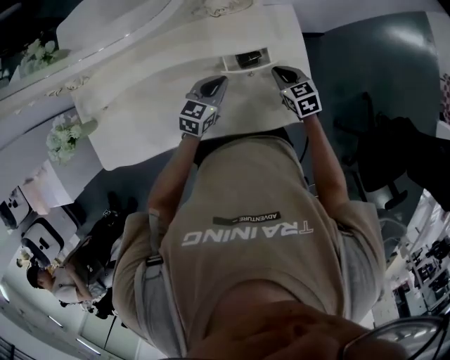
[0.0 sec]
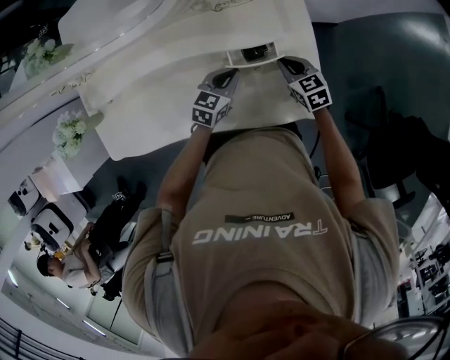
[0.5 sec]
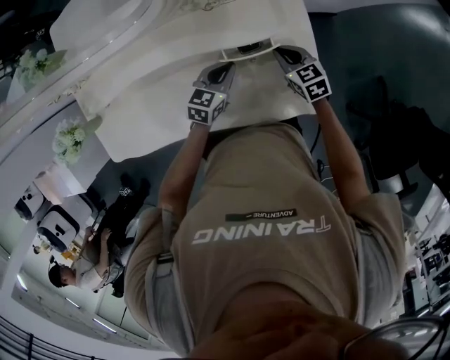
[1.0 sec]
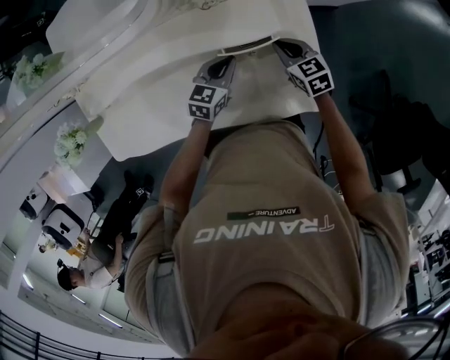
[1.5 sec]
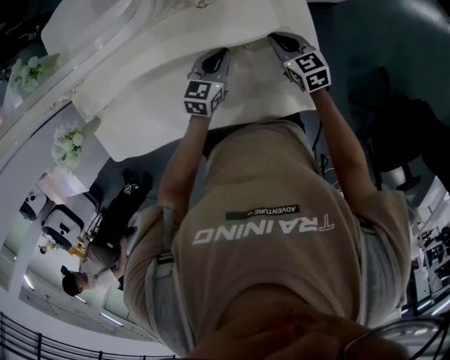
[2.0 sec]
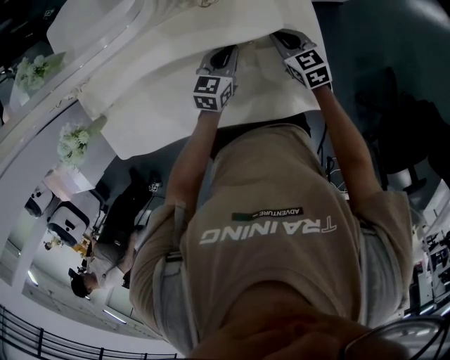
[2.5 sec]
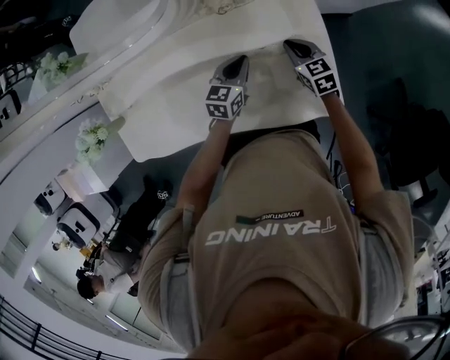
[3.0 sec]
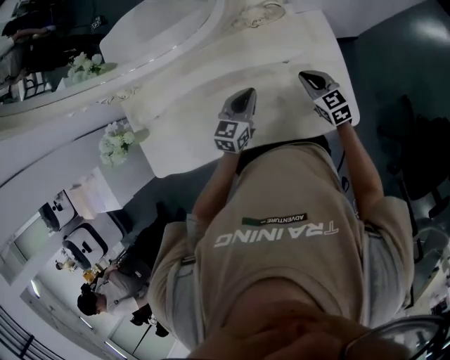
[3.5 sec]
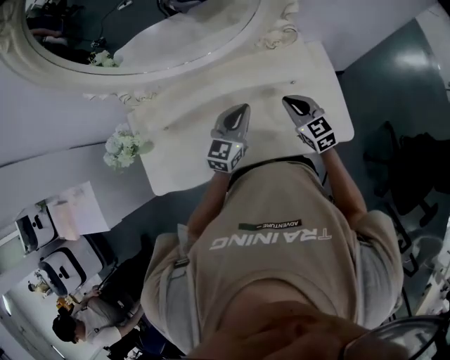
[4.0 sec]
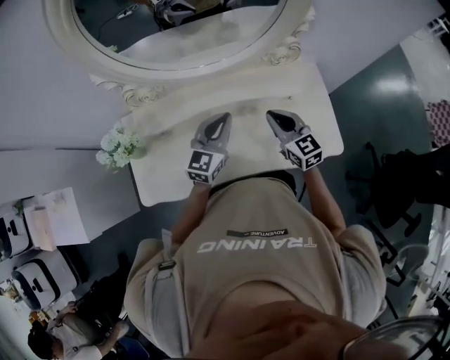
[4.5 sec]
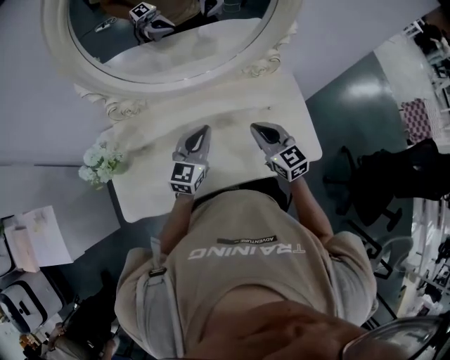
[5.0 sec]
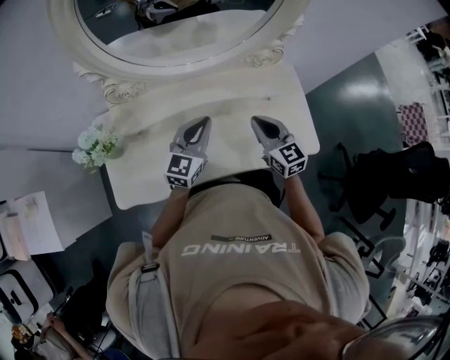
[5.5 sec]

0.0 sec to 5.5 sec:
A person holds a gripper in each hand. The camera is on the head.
0.0 sec to 2.0 sec: The two grippers go approximately 5 cm forward.
2.0 sec to 3.5 sec: The left gripper heads to the left, upward and backward, covering some 15 cm; the right gripper is displaced backward, upward and to the left by some 10 cm.
3.5 sec to 5.5 sec: The right gripper travels to the left, upward and backward by approximately 30 cm. The left gripper is displaced to the left and upward by roughly 25 cm, and swivels about 20 degrees.

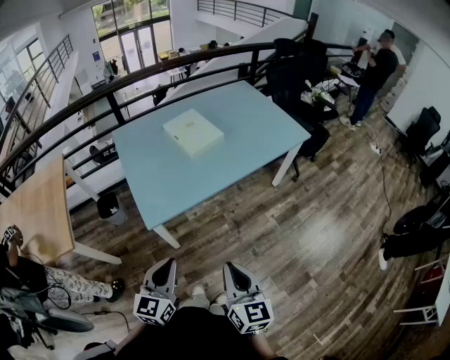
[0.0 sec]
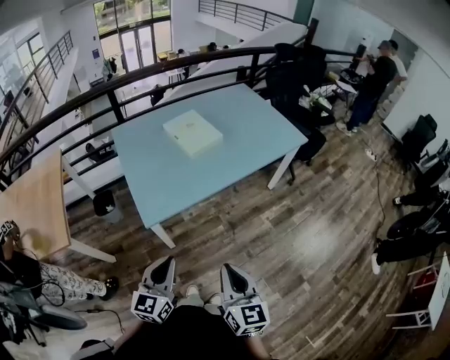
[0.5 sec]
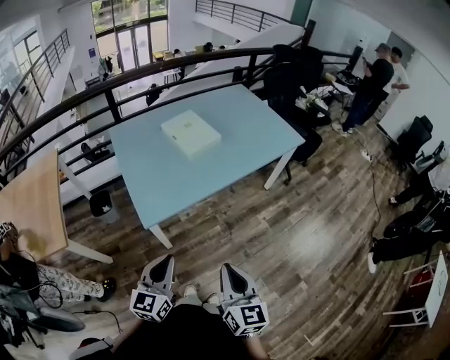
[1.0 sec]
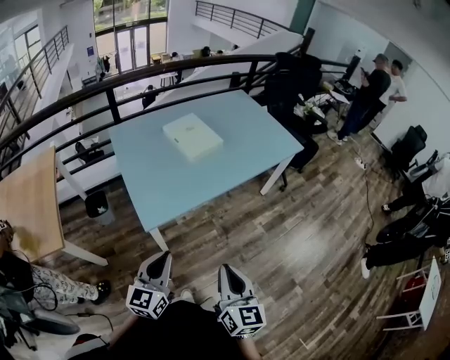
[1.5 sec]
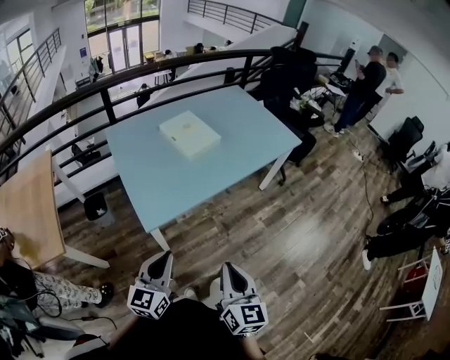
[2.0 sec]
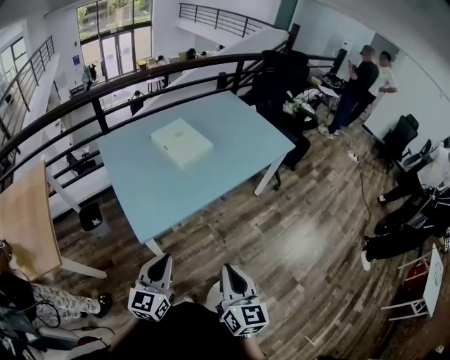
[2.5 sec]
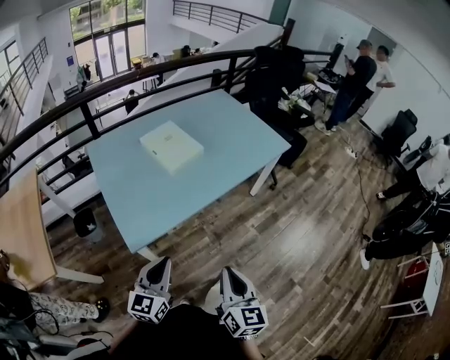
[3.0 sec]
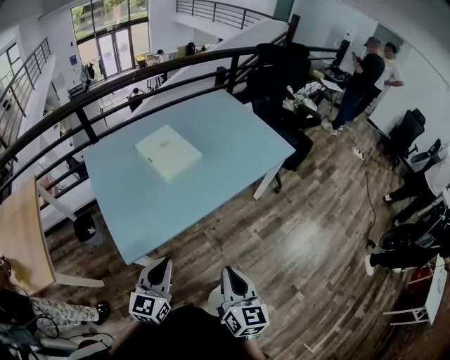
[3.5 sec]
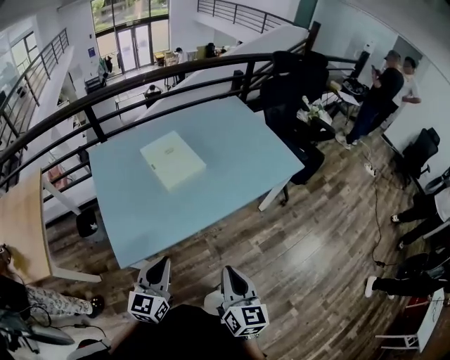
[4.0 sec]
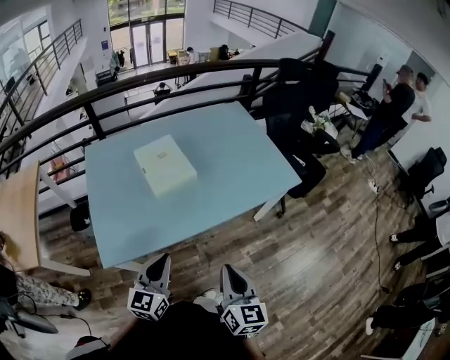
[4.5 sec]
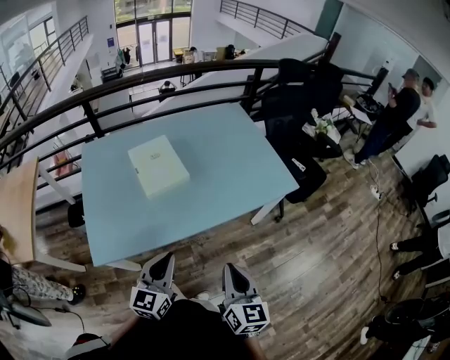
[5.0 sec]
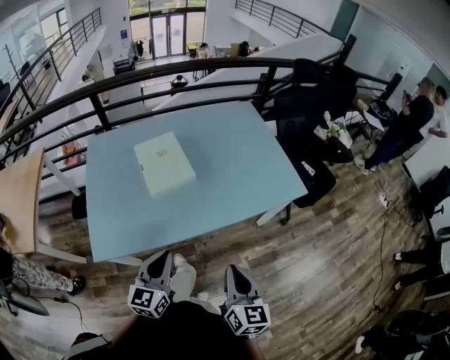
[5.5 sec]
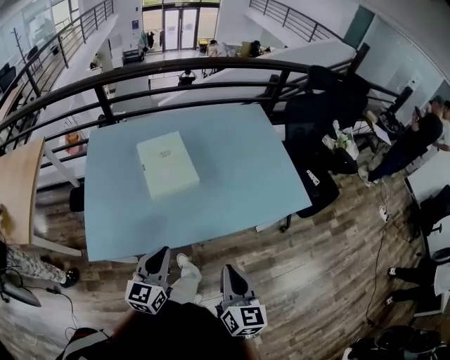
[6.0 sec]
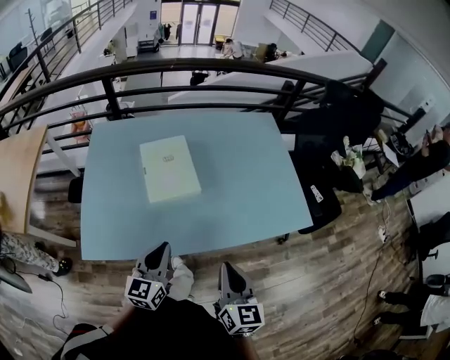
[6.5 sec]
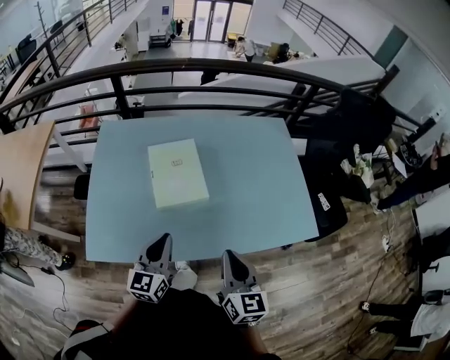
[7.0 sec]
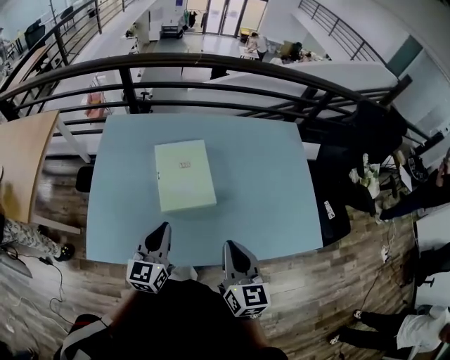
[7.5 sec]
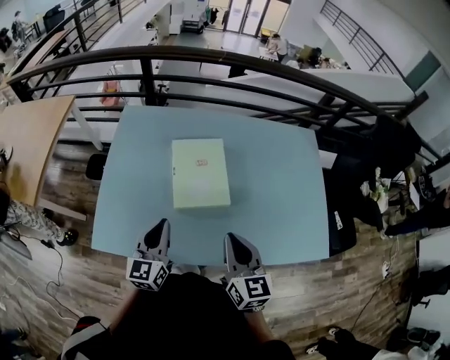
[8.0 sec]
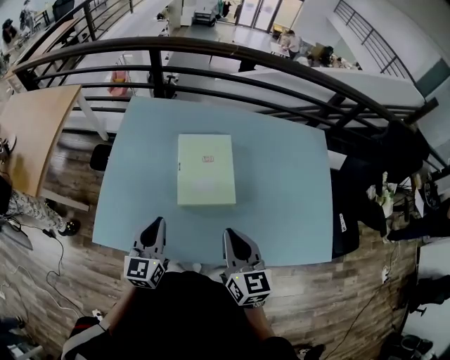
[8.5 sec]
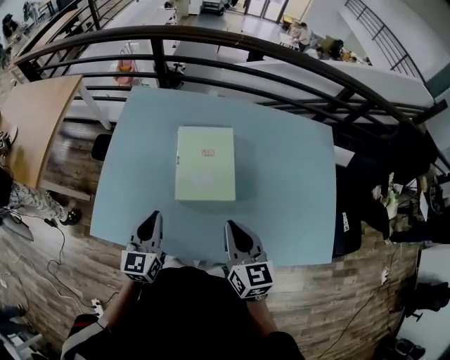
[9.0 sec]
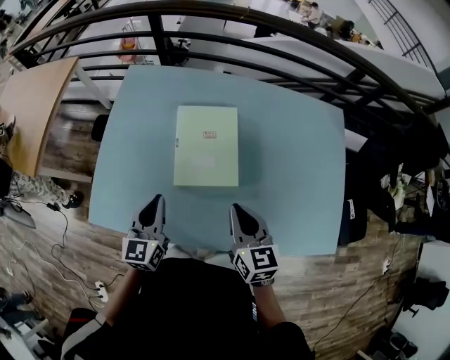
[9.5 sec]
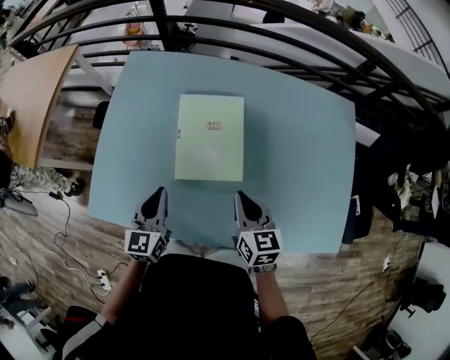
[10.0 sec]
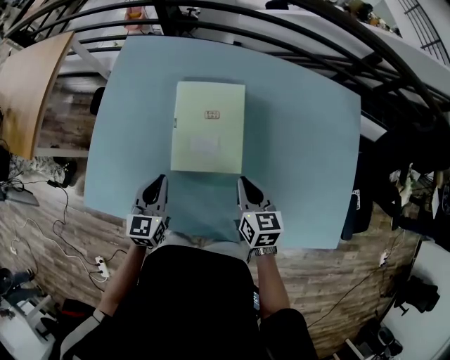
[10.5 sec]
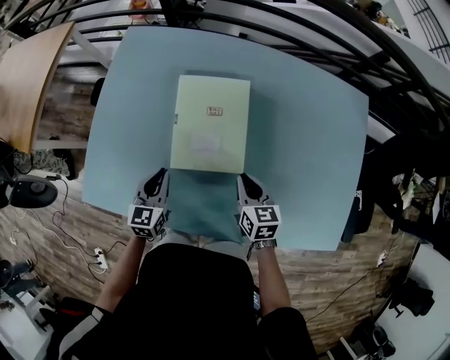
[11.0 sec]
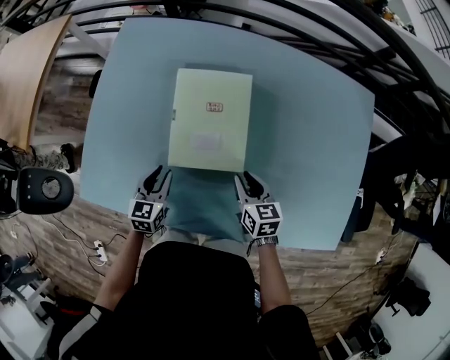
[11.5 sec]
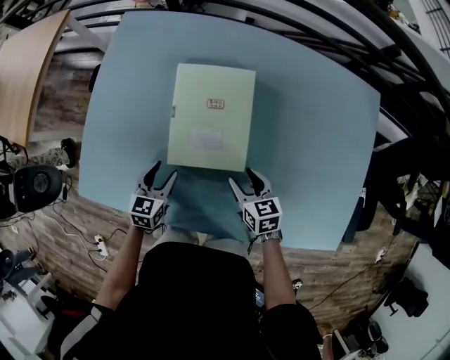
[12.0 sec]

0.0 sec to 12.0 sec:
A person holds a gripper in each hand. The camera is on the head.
0.0 sec to 2.0 sec: The left gripper goes about 5 cm to the left.
2.0 sec to 4.0 sec: The grippers both shift forward and to the right by approximately 25 cm.
4.0 sec to 6.0 sec: Both grippers move forward and to the right, some 20 cm.
6.0 sec to 8.0 sec: The right gripper is displaced forward by approximately 25 cm, and swivels approximately 20 degrees, while the left gripper travels forward and to the left by about 20 cm, and swivels roughly 20 degrees.
8.0 sec to 10.0 sec: The left gripper shifts approximately 10 cm downward. The right gripper moves downward and forward, approximately 15 cm.
10.0 sec to 12.0 sec: The two grippers go roughly 15 cm downward. The right gripper swivels about 20 degrees, and opens, while the left gripper turns by roughly 20 degrees, and opens.

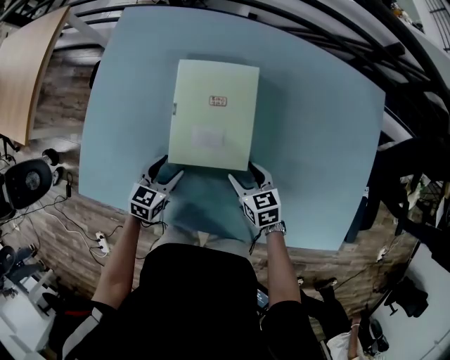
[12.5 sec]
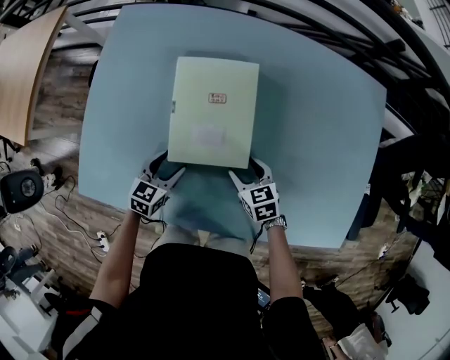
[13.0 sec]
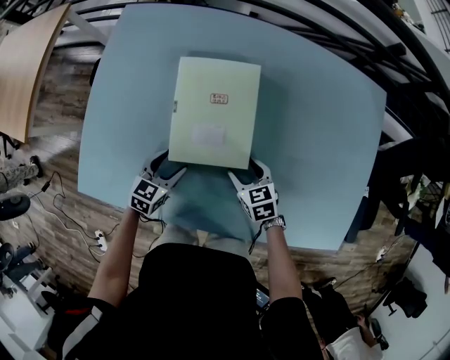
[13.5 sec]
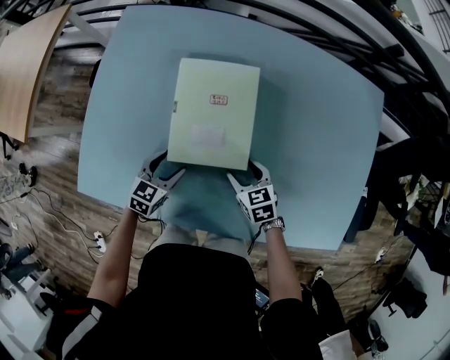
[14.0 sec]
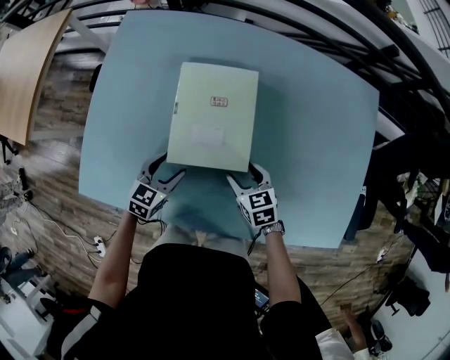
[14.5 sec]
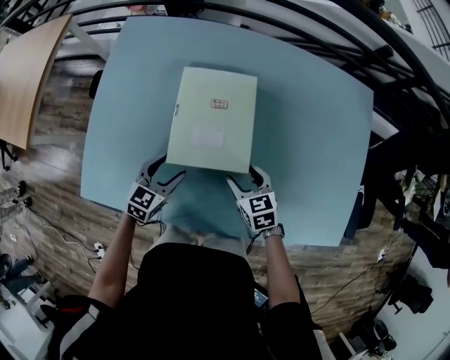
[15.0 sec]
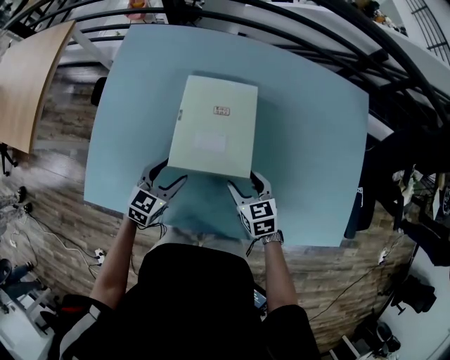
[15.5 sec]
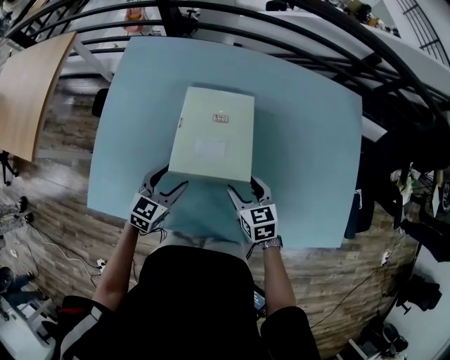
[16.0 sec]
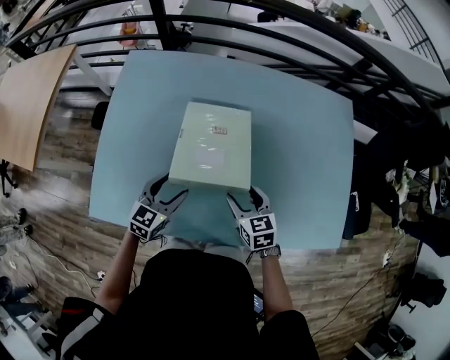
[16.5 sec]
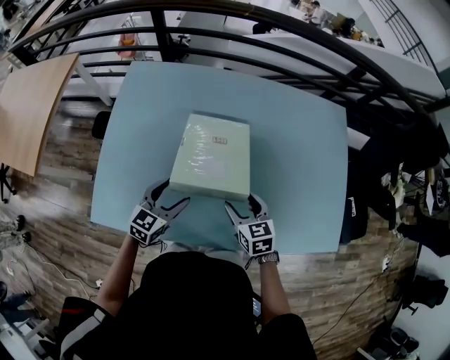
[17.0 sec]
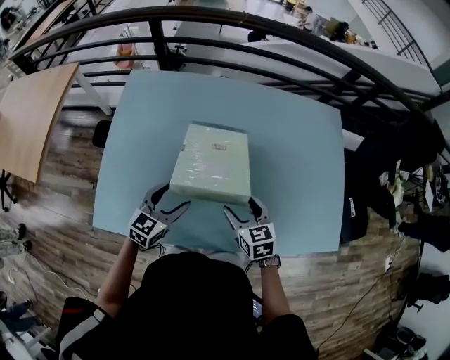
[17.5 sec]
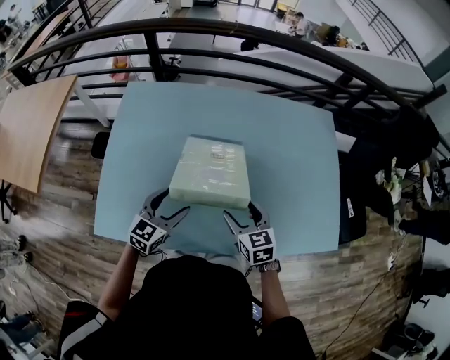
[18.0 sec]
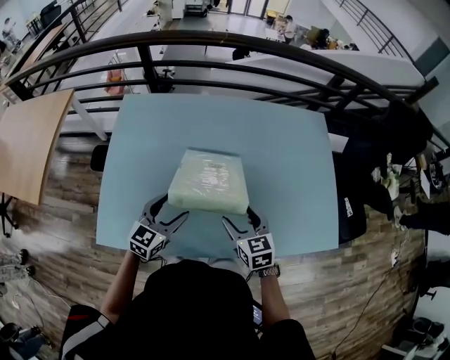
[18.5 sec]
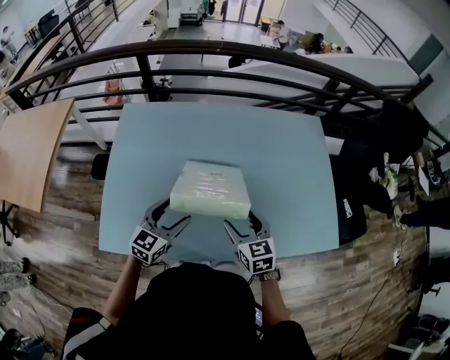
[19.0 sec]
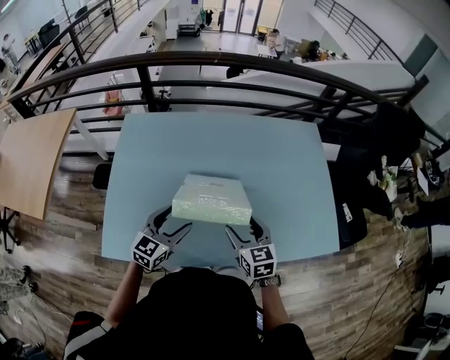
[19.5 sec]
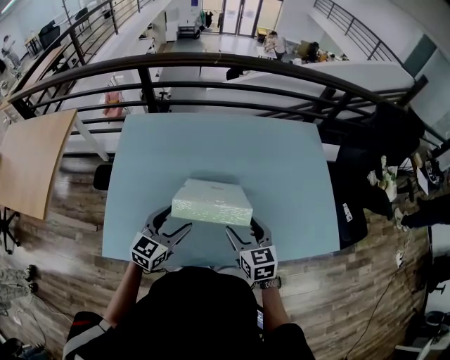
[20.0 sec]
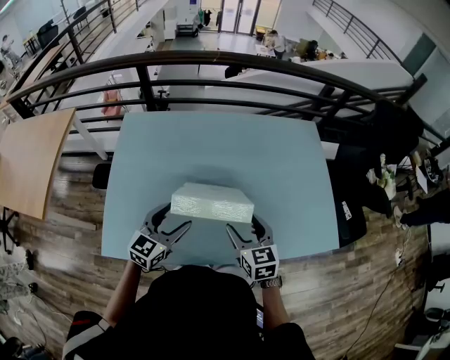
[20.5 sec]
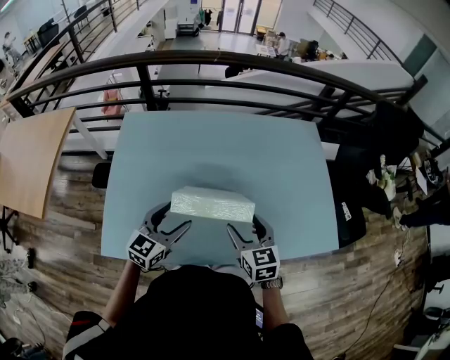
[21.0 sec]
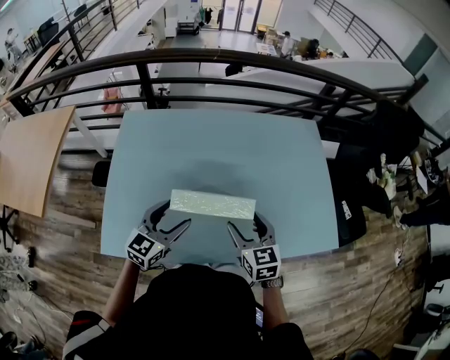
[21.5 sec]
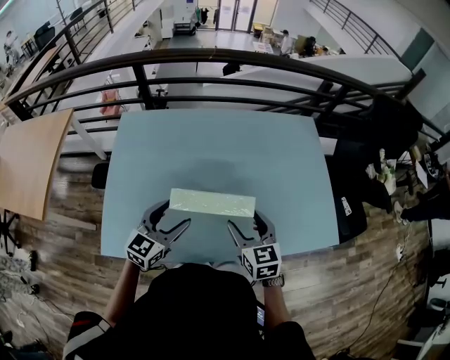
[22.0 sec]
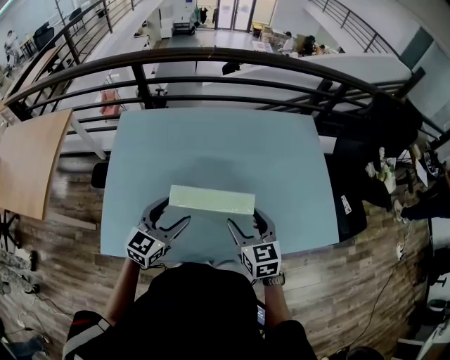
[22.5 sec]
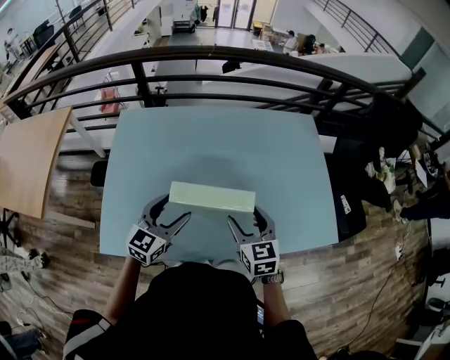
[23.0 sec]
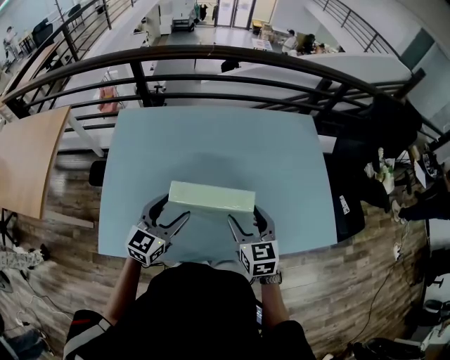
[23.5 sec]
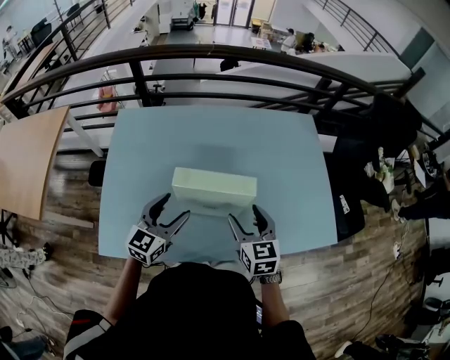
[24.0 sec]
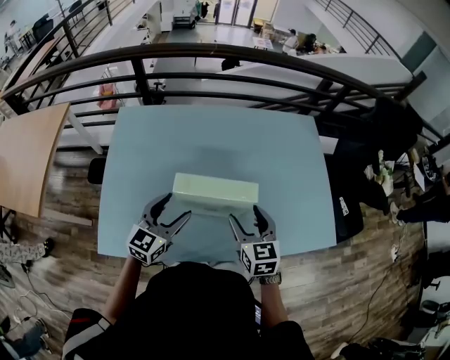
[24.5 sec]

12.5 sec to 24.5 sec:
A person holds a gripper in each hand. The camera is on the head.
12.5 sec to 14.5 sec: The grippers make only small movements.
14.5 sec to 16.5 sec: The grippers both shift upward by about 10 cm.
16.5 sec to 18.5 sec: The grippers both shift upward by about 5 cm.
18.5 sec to 20.5 sec: The left gripper shifts by roughly 5 cm. Meanwhile the right gripper shifts roughly 5 cm upward.
20.5 sec to 24.5 sec: The grippers move only a little.
